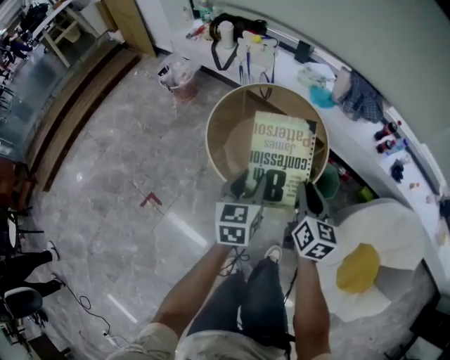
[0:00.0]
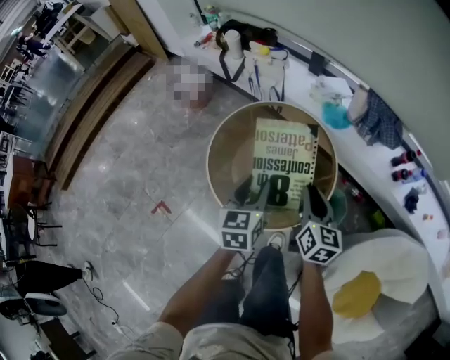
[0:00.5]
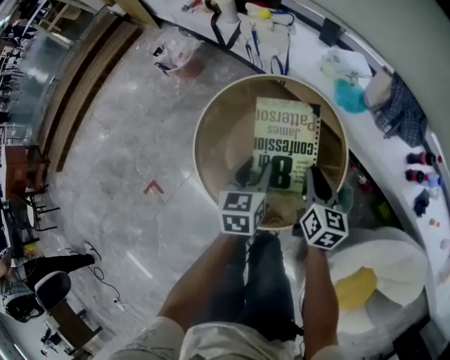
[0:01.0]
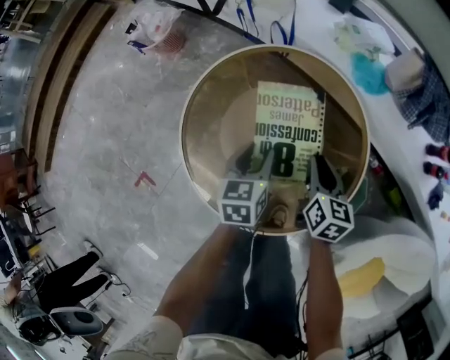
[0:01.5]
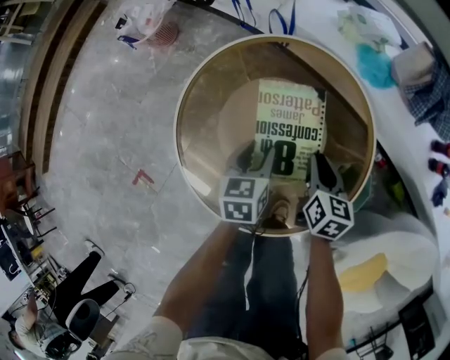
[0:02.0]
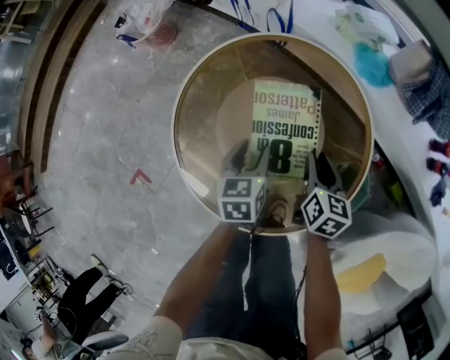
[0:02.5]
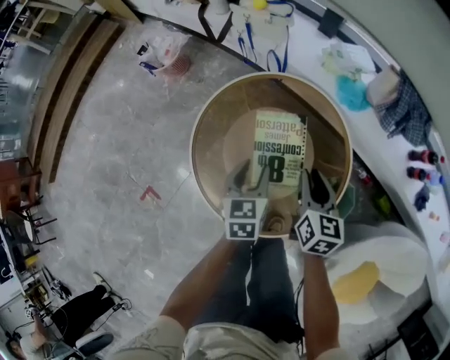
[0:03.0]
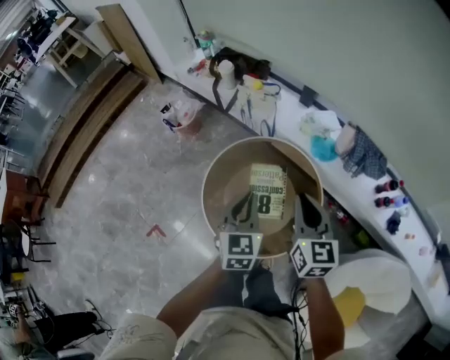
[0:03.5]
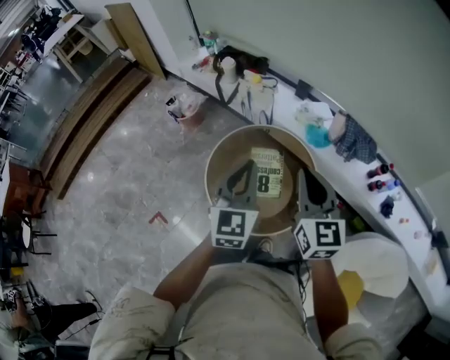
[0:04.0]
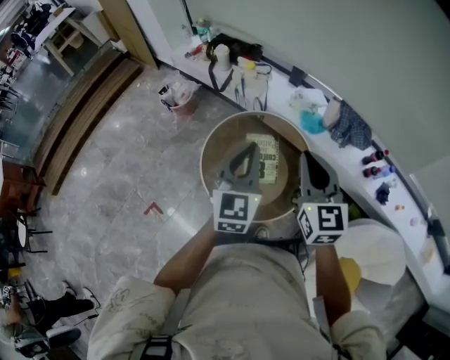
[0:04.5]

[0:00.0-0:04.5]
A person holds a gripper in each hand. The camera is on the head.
0:00.0 to 0:02.0: Both grippers travel together downward and forward, approximately 40 cm. The right gripper rotates approximately 20 degrees, while the left gripper rotates roughly 20 degrees.
0:02.0 to 0:04.5: Both grippers move upward, about 50 cm. The left gripper angles its fingers upward, by about 40 degrees, and closes; the right gripper tips its fingers upward by approximately 30 degrees.

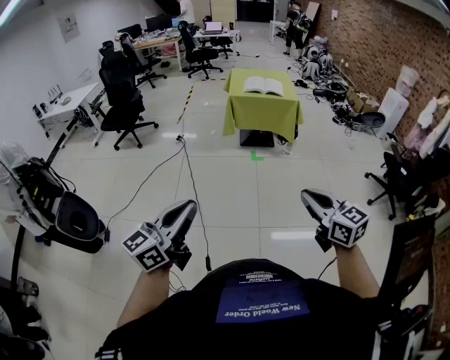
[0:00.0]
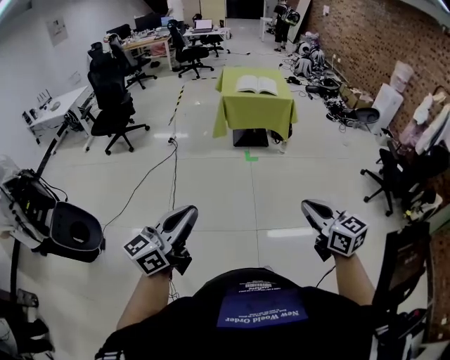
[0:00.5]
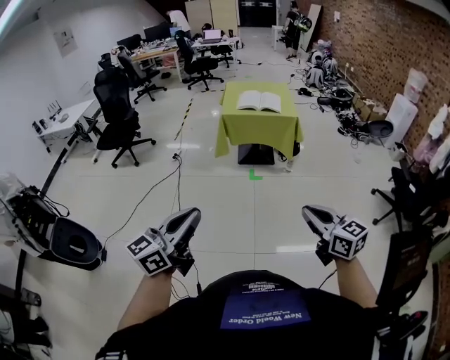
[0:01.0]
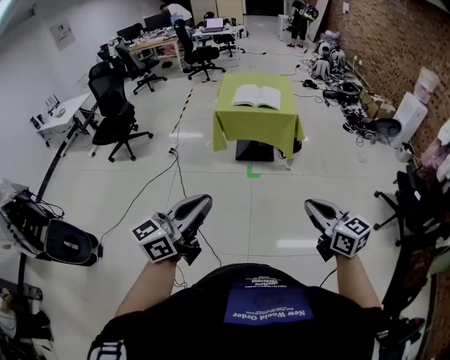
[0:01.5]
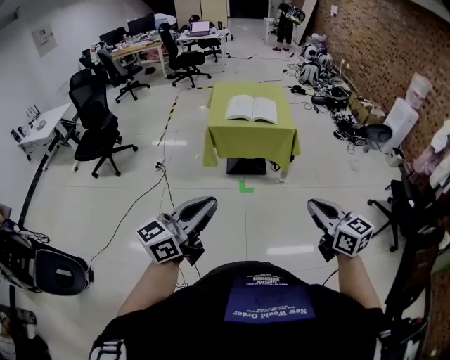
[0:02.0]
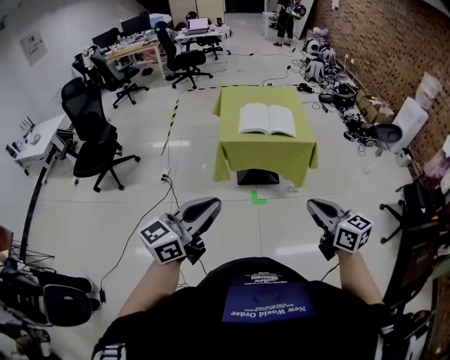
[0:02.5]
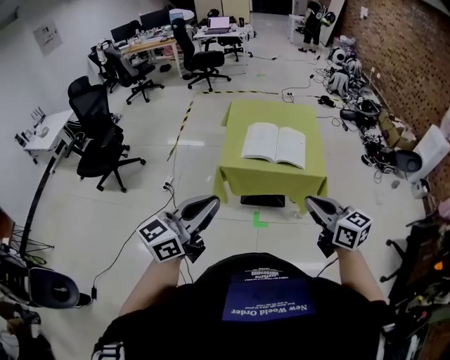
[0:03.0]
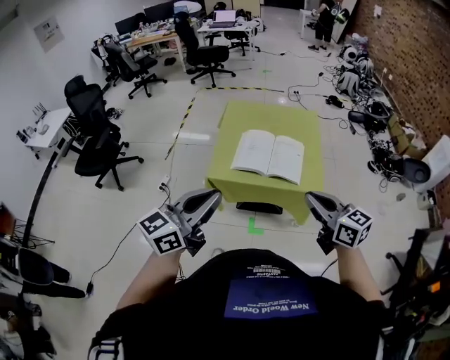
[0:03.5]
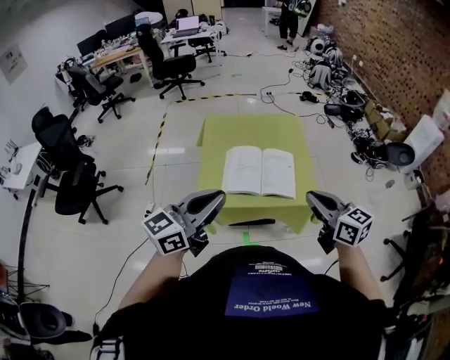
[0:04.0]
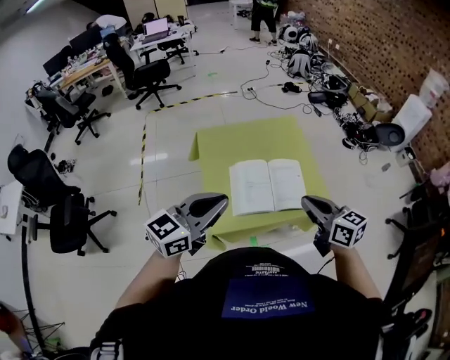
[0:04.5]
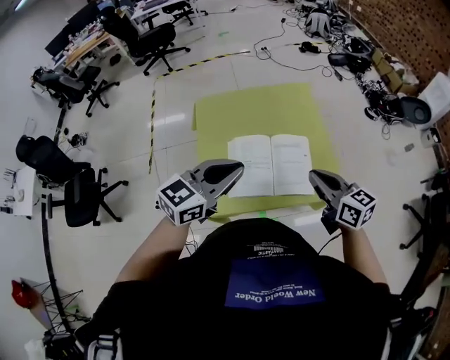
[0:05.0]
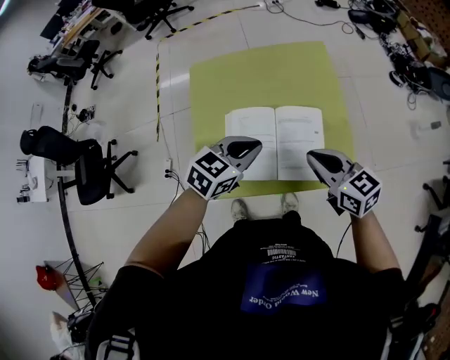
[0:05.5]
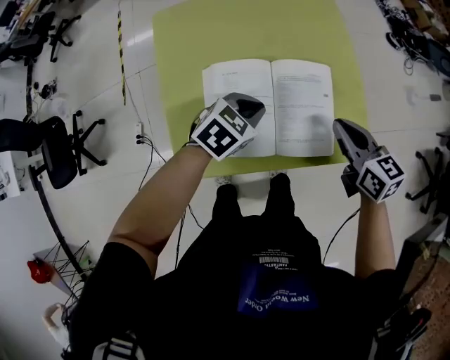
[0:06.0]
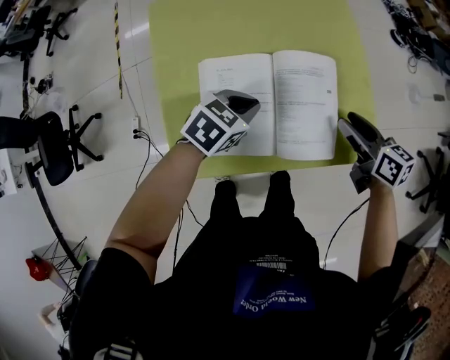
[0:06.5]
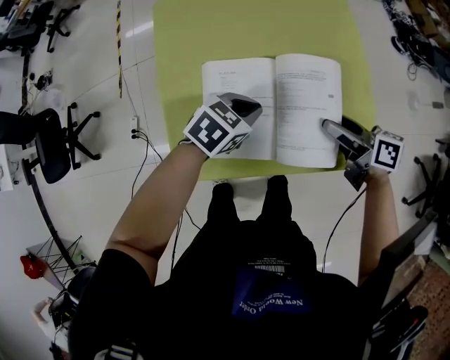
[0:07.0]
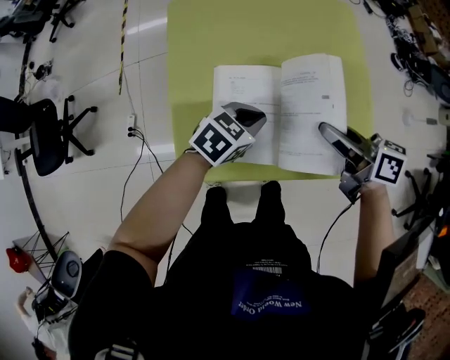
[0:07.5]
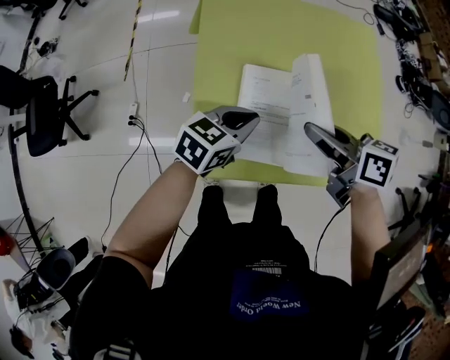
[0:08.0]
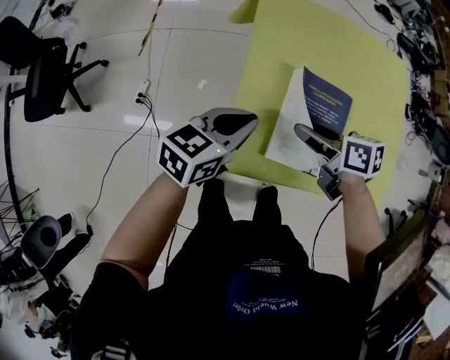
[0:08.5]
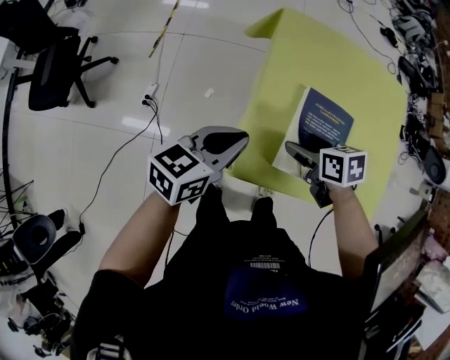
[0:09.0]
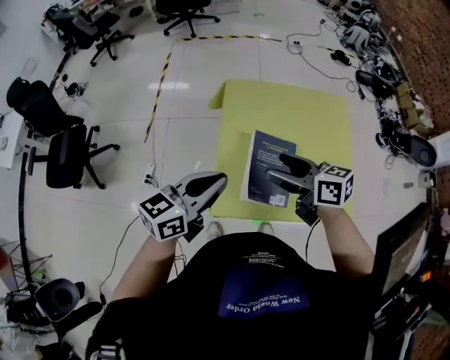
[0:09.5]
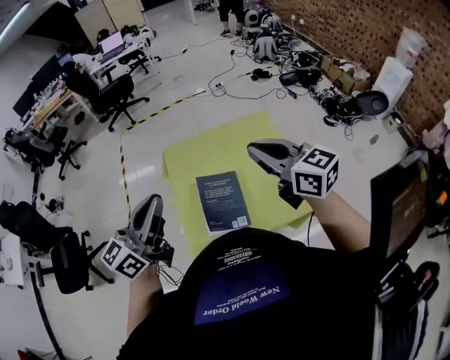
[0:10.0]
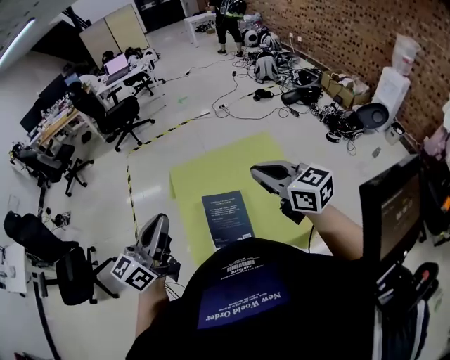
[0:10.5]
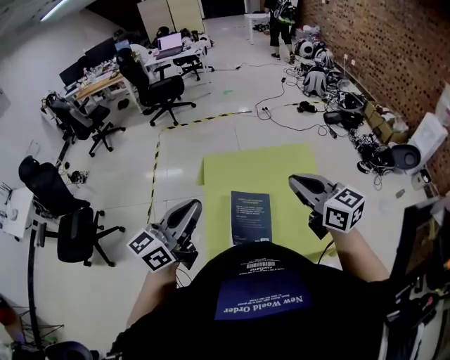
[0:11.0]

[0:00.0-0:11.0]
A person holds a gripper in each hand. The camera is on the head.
0:00.0 to 0:02.0: The pair of grippers is taken forward, about 50 cm.
0:02.0 to 0:03.5: The two grippers travel together, forward, some 50 cm.
0:03.5 to 0:05.5: Both grippers travel together forward and downward, roughly 40 cm. The left gripper points its fingers about 40 degrees further downward.
0:05.5 to 0:07.5: The left gripper heads downward, covering about 15 cm; the right gripper shifts roughly 5 cm downward, rotates some 30 degrees, and opens and closes again.
0:07.5 to 0:09.0: Both grippers move to the left, roughly 25 cm. The left gripper changes its angle by approximately 40 degrees. Meanwhile the right gripper tilts its fingers roughly 40 degrees downward, and opens.
0:09.0 to 0:11.0: The two grippers go roughly 30 cm upward. The left gripper tips its fingers upward by some 30 degrees. The right gripper angles its fingers upward, by approximately 50 degrees, and closes its fingers.

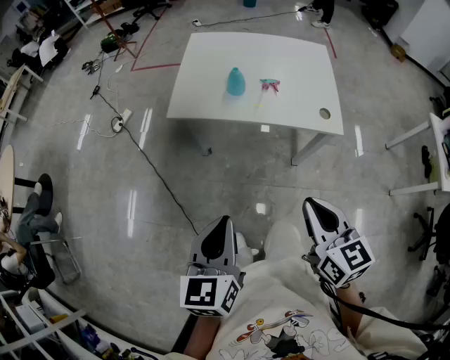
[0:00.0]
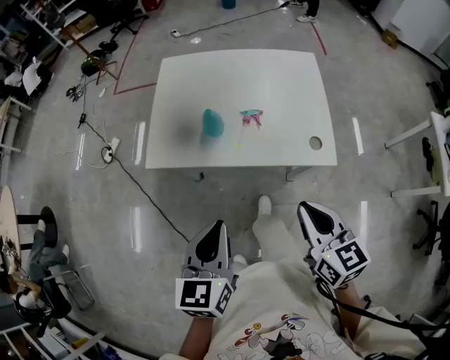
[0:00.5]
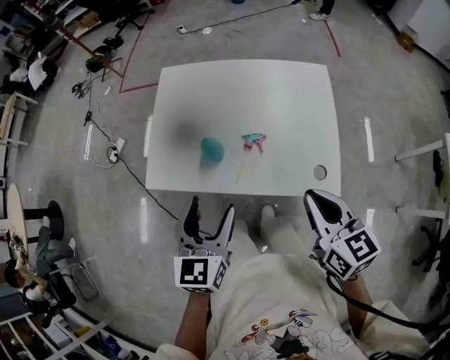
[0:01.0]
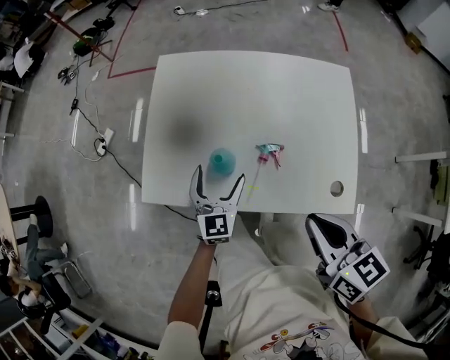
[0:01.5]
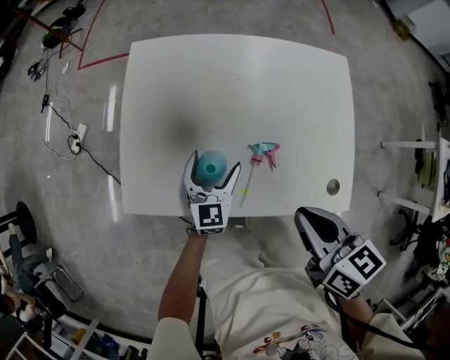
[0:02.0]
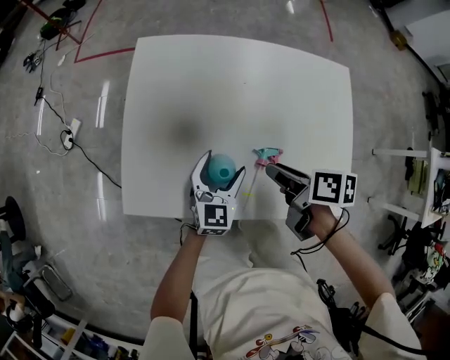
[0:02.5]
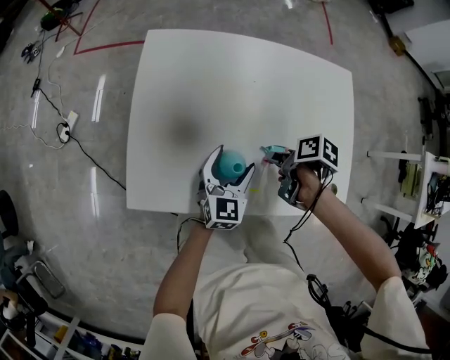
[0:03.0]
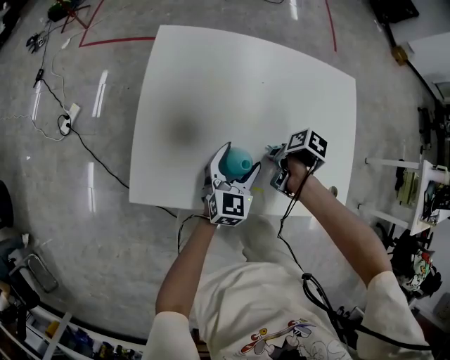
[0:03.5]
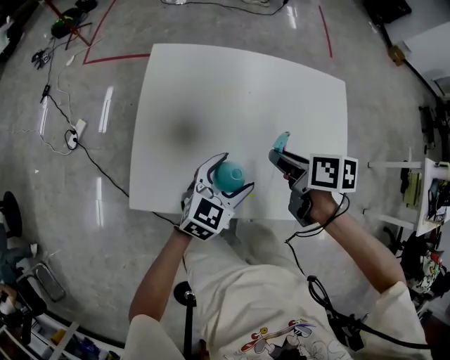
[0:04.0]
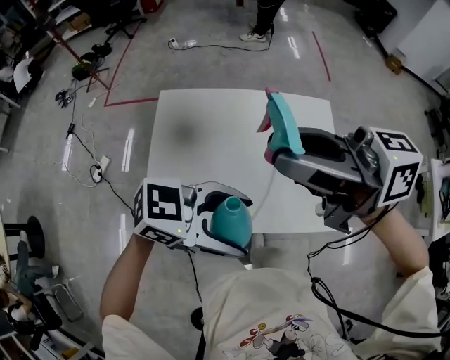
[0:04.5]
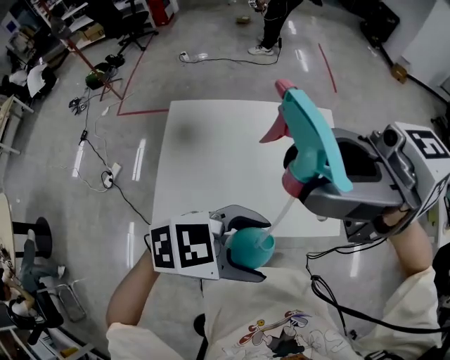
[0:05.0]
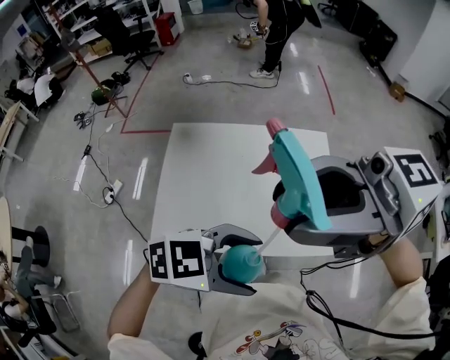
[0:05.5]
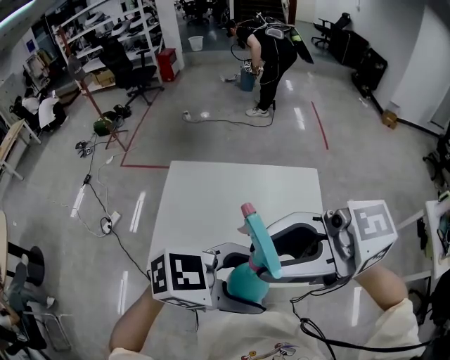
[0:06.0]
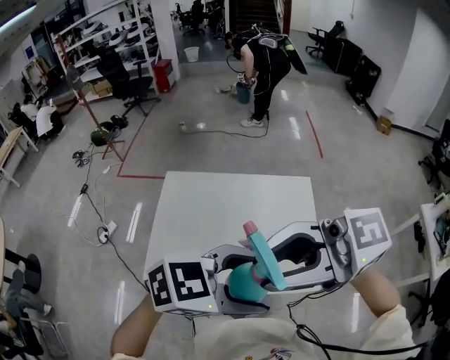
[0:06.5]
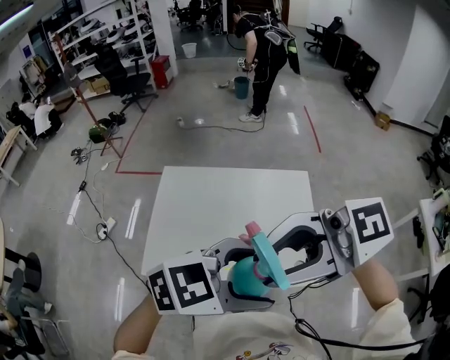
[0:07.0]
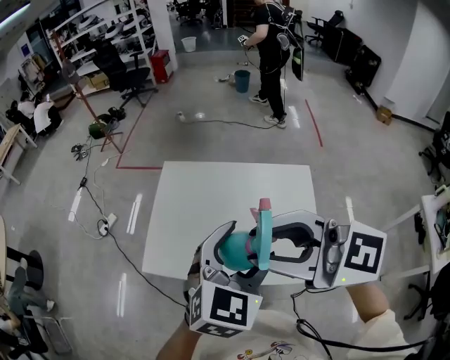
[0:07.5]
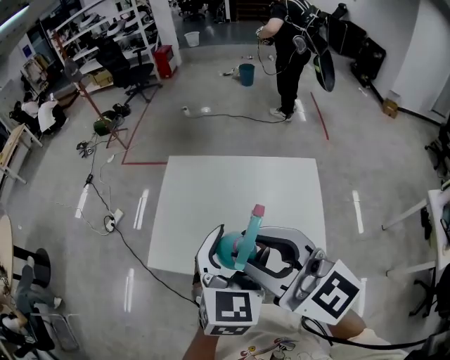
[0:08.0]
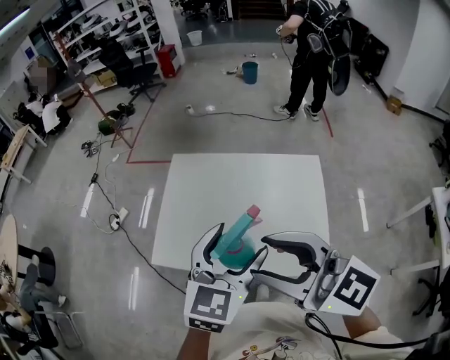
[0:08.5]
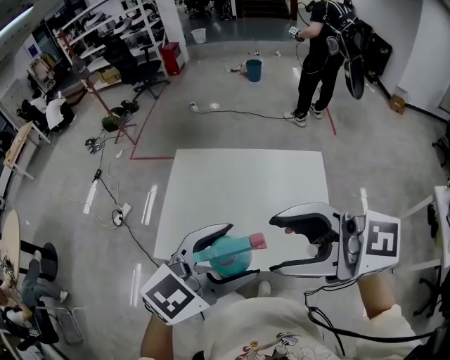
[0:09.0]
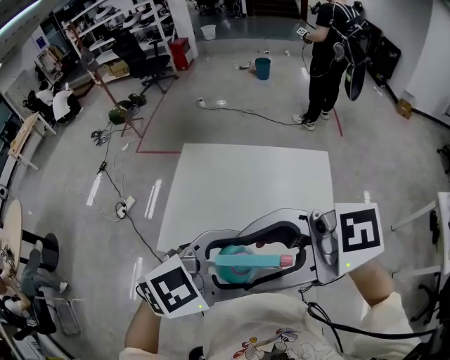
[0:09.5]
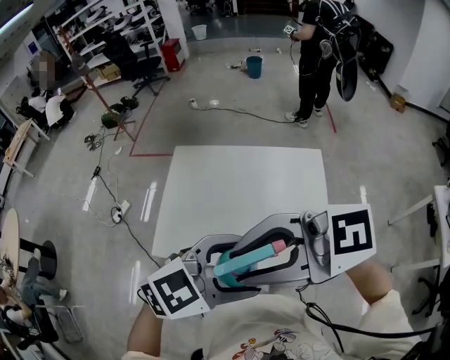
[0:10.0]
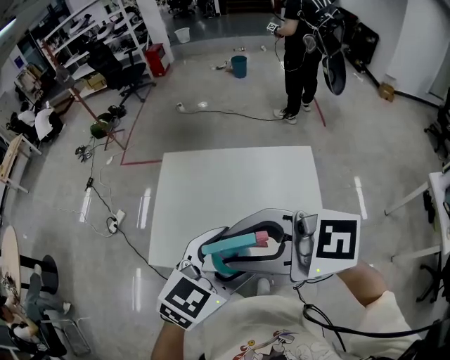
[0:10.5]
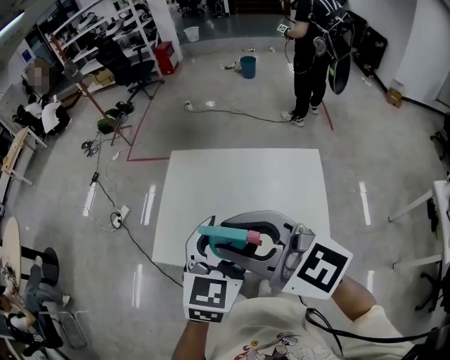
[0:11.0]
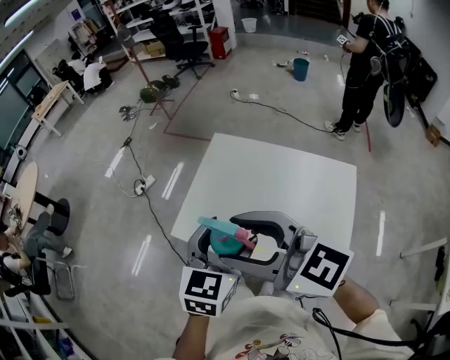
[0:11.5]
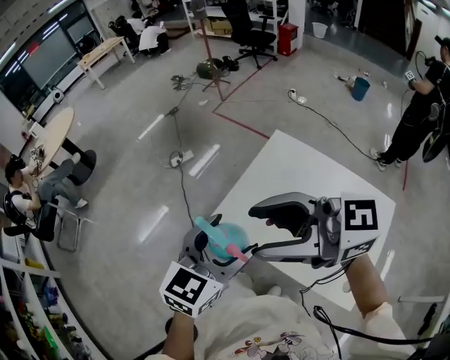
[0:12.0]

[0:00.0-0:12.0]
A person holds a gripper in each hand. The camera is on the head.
0:00.0 to 0:02.0: The pair of grippers is taken forward, about 60 cm. The right gripper turns by roughly 20 degrees. Meanwhile the left gripper is displaced downward by about 30 cm, turns by roughly 20 degrees, and opens up.
0:02.0 to 0:04.0: The left gripper shifts some 5 cm upward, and turns by about 30 degrees; the right gripper moves some 25 cm downward and comes back, swivels some 20 degrees, and opens up.
0:04.0 to 0:06.0: Both grippers travel together upward, about 40 cm. The right gripper angles its fingers upward, by about 50 degrees, while the left gripper rotates roughly 50 degrees.
0:06.0 to 0:08.0: The left gripper changes place by some 10 cm, and turns by roughly 70 degrees. The right gripper moves some 5 cm, and changes its angle by about 40 degrees.
0:08.0 to 0:10.0: The left gripper moves about 10 cm, and rotates some 50 degrees; the right gripper moves about 5 cm, turns by some 50 degrees, and opens and closes again.
0:10.0 to 0:12.0: The left gripper ends up roughly 25 cm from where it was, and swivels roughly 70 degrees, while the right gripper moves some 15 cm, changes its angle by roughly 20 degrees, and opens.
